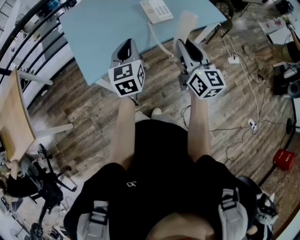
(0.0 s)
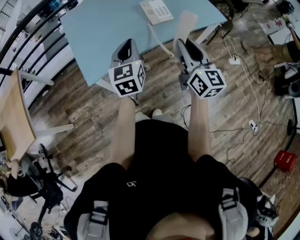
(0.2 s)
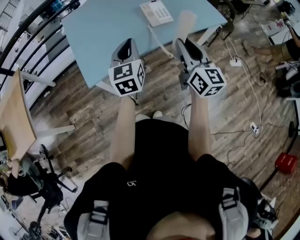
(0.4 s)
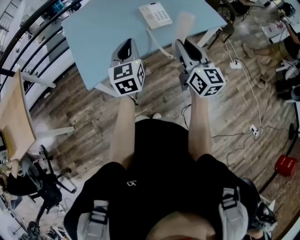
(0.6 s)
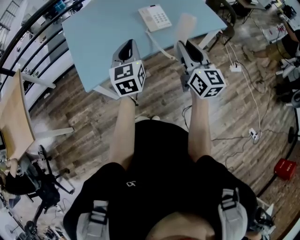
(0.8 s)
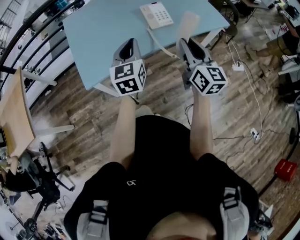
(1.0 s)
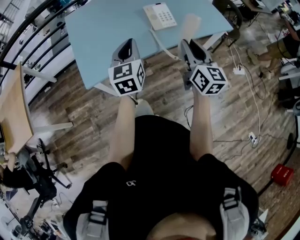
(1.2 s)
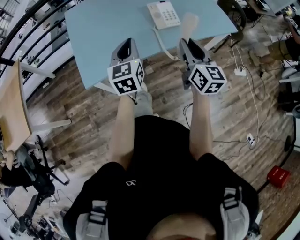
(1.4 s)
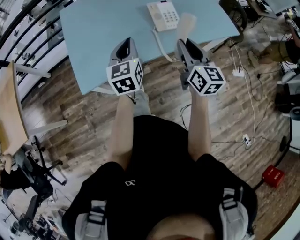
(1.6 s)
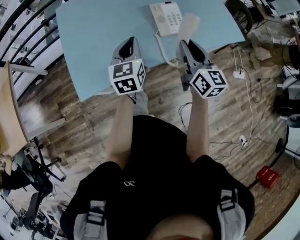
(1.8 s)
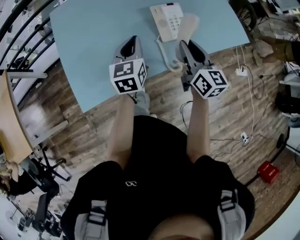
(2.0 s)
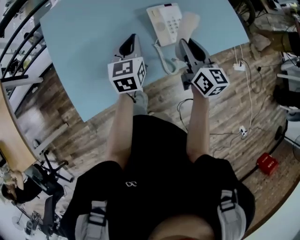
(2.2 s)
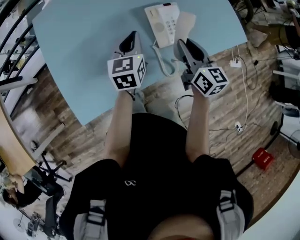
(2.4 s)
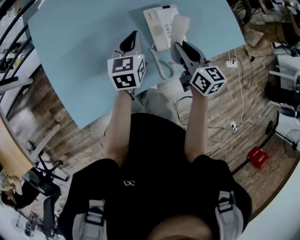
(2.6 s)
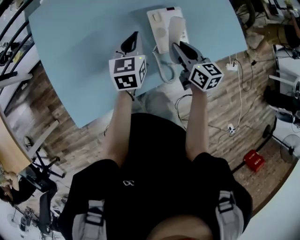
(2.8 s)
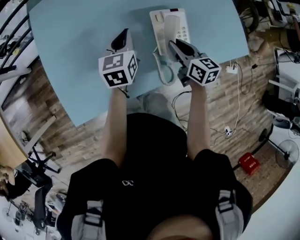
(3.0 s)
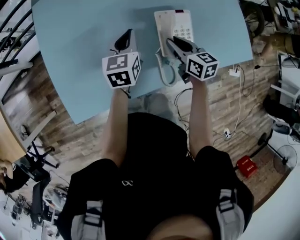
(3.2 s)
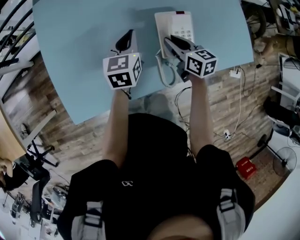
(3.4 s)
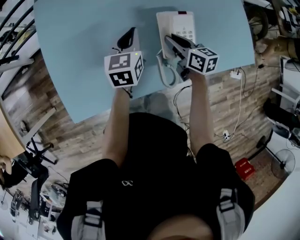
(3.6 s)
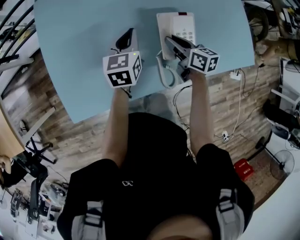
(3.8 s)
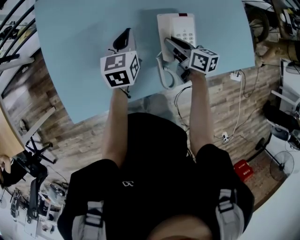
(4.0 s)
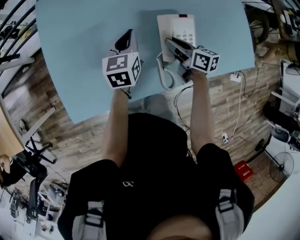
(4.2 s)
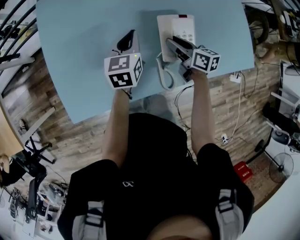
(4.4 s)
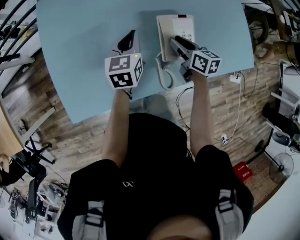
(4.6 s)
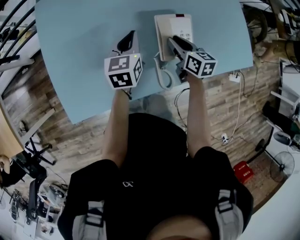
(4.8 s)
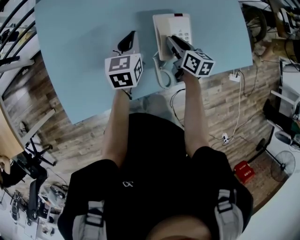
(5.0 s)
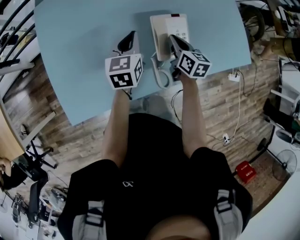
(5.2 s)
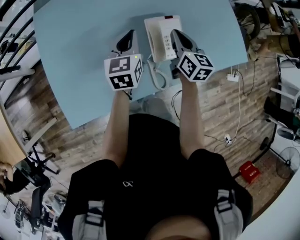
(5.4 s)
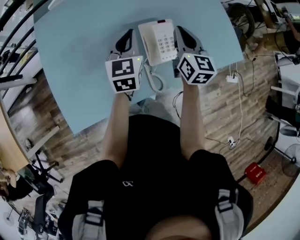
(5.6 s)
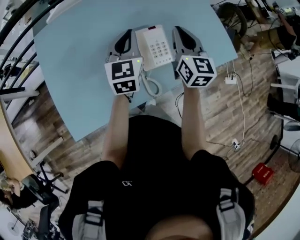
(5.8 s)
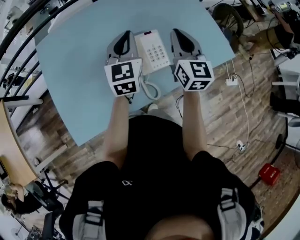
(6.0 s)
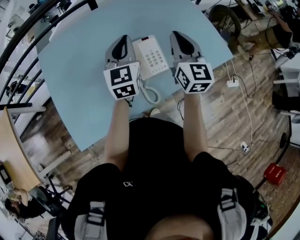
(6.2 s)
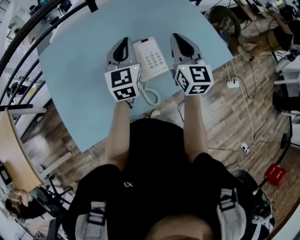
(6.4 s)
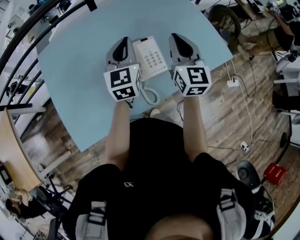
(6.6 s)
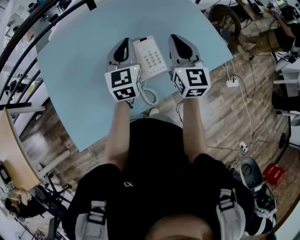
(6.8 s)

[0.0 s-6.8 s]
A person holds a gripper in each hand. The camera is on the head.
0.0 to 1.4 s: The two grippers go about 10 cm forward.
1.4 to 2.8 s: The right gripper moves forward and downward, roughly 35 cm, and changes its angle by some 30 degrees. The left gripper goes some 30 cm forward.
2.8 to 4.0 s: The left gripper moves approximately 5 cm. The right gripper heads downward and forward, covering roughly 10 cm, and changes its angle by some 20 degrees.
4.0 to 5.4 s: The left gripper heads upward, covering roughly 5 cm, while the right gripper goes roughly 10 cm upward and to the right, and turns by approximately 30 degrees.
5.4 to 6.8 s: The right gripper goes approximately 15 cm upward, and changes its angle by some 30 degrees. The left gripper travels upward and to the right by approximately 15 cm.

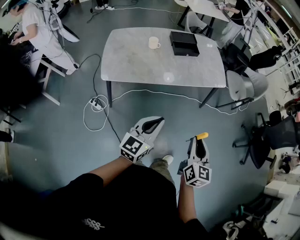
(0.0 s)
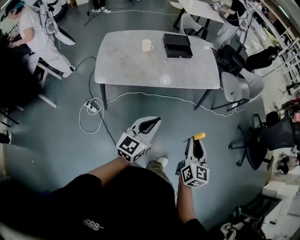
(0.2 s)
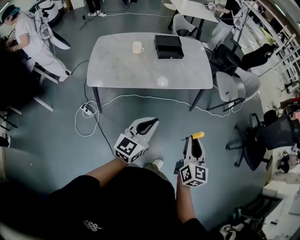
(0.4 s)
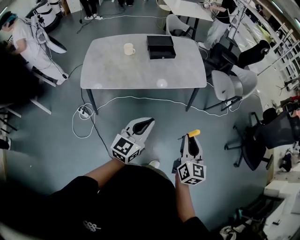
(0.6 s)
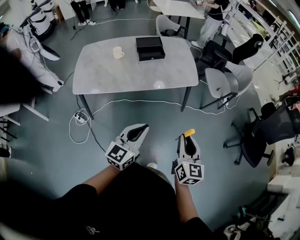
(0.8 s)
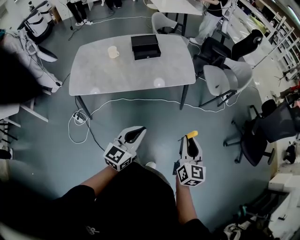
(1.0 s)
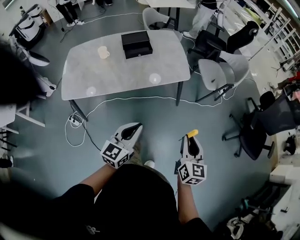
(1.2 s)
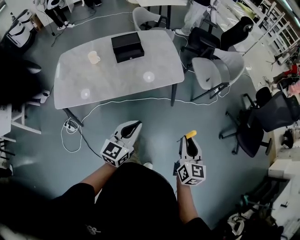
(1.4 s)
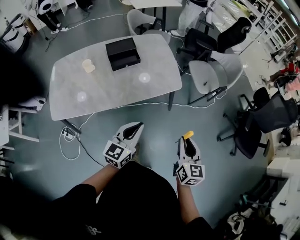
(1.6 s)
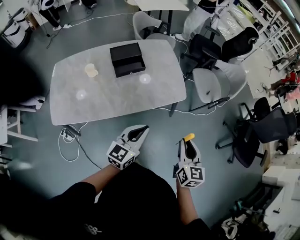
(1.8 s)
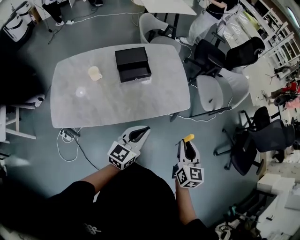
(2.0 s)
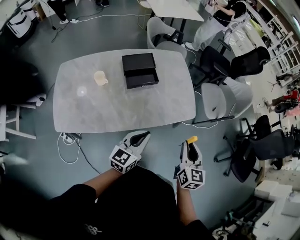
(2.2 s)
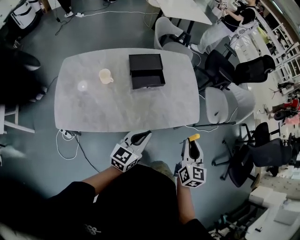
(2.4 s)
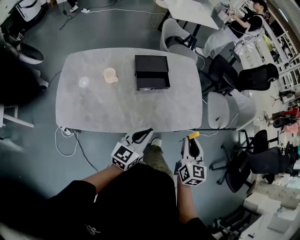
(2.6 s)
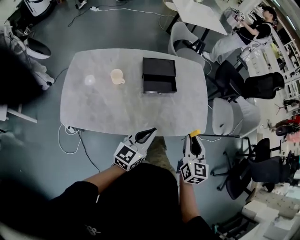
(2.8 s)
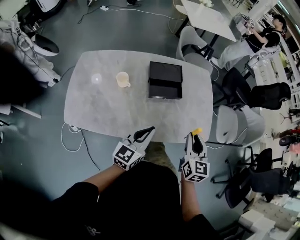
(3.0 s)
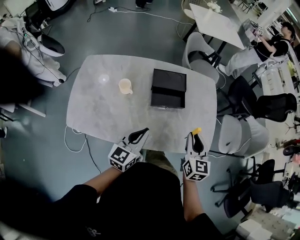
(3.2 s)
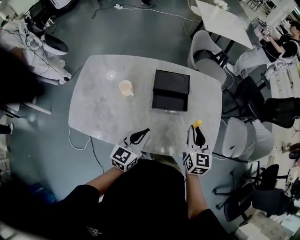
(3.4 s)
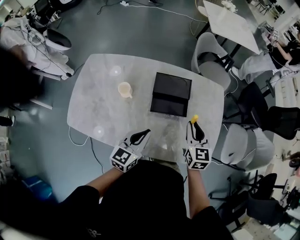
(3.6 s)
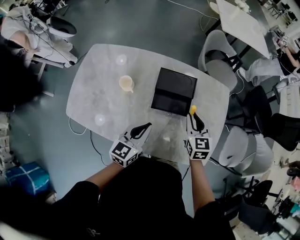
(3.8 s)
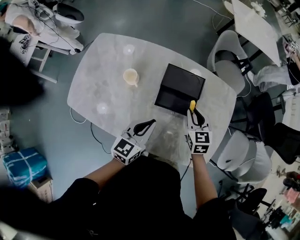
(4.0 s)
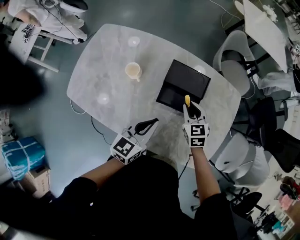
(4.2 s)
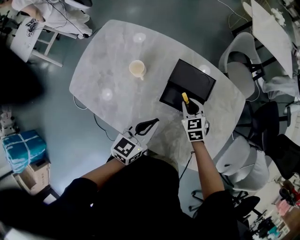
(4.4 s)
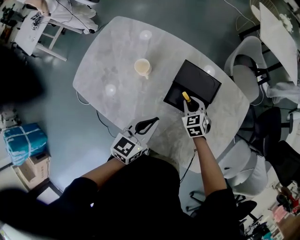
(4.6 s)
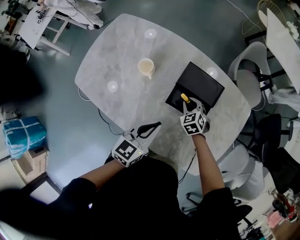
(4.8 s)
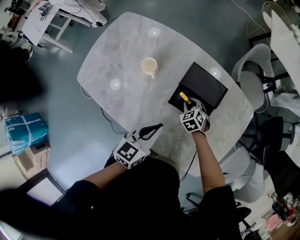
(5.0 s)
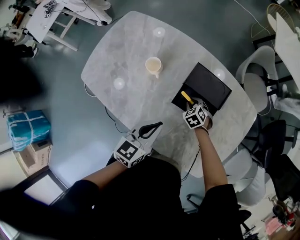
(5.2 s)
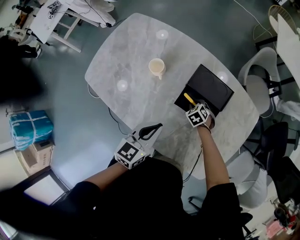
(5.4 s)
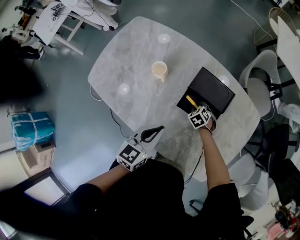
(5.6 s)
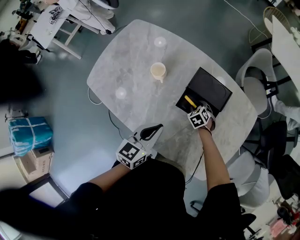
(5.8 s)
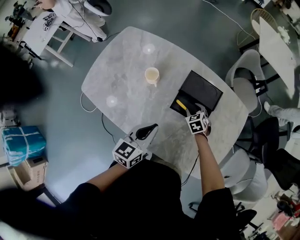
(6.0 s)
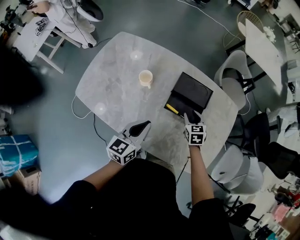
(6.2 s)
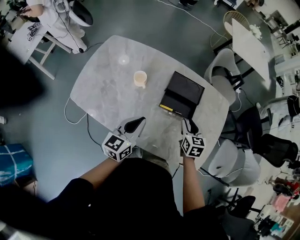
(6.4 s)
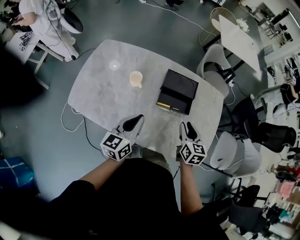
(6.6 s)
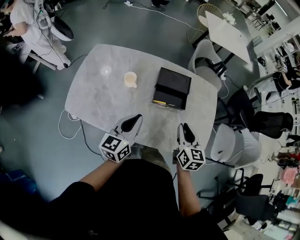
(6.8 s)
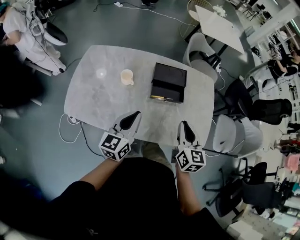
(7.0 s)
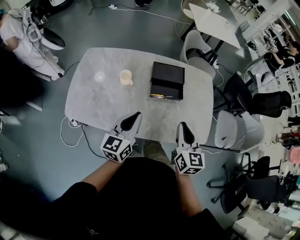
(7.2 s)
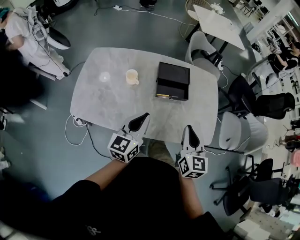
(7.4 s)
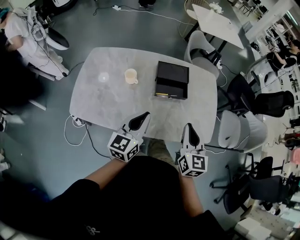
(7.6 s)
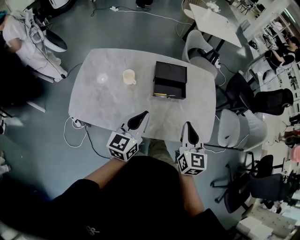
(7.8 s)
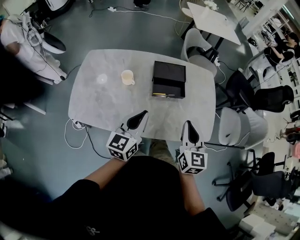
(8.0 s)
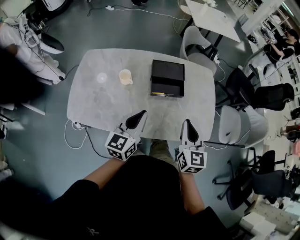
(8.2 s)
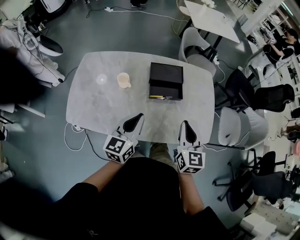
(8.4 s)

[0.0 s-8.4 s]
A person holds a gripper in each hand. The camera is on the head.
0.0 to 1.4 s: Both grippers travel together to the right and forward, approximately 30 cm.
1.4 to 2.8 s: Both grippers travel together forward and to the left, roughly 40 cm.
2.8 to 4.2 s: The right gripper shifts by some 40 cm, and turns by roughly 50 degrees, while the left gripper moves approximately 20 cm, and rotates some 30 degrees.
4.2 to 5.6 s: The left gripper changes place by about 5 cm, while the right gripper moves downward, about 20 cm, and turns by approximately 40 degrees.
5.6 to 7.0 s: The left gripper shifts by about 15 cm, and changes its angle by roughly 20 degrees. Meanwhile the right gripper is displaced upward by some 40 cm, and angles its fingers upward, by roughly 50 degrees.
7.0 to 8.4 s: The grippers stay close to where they were, moving slightly.

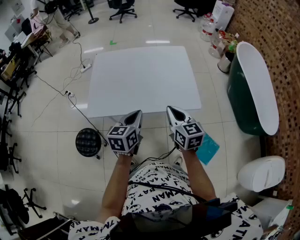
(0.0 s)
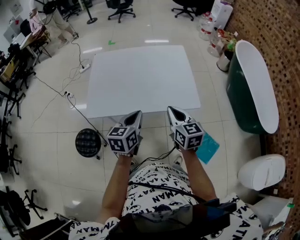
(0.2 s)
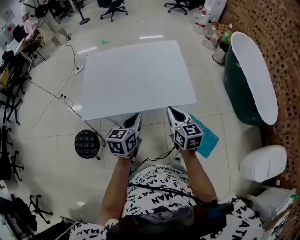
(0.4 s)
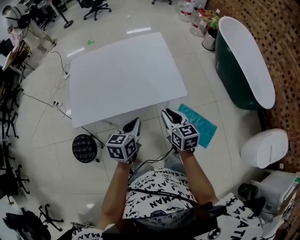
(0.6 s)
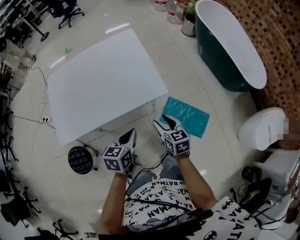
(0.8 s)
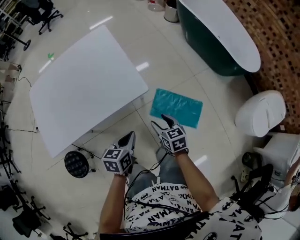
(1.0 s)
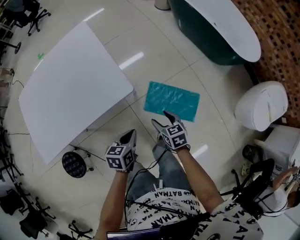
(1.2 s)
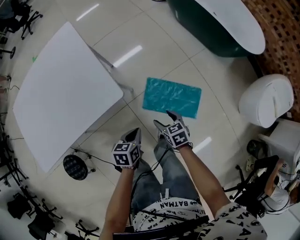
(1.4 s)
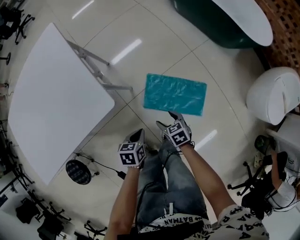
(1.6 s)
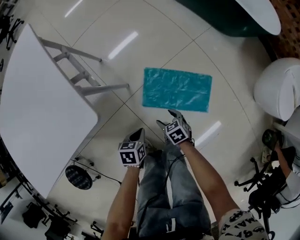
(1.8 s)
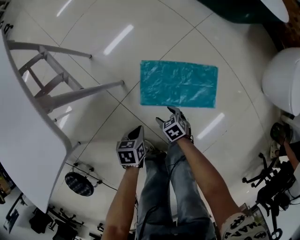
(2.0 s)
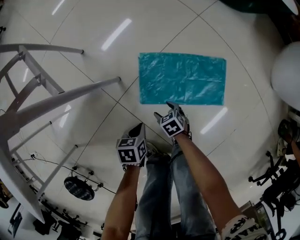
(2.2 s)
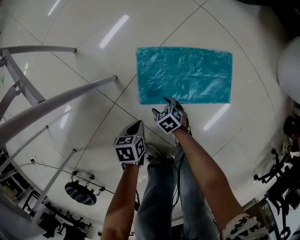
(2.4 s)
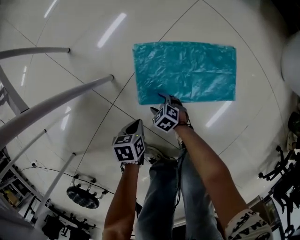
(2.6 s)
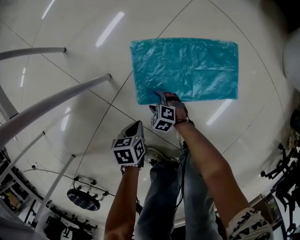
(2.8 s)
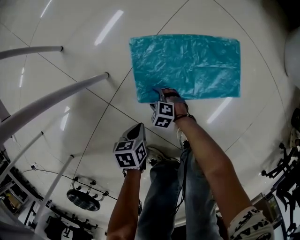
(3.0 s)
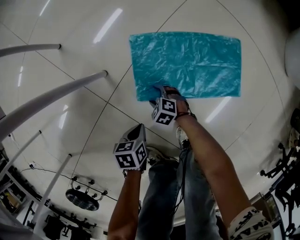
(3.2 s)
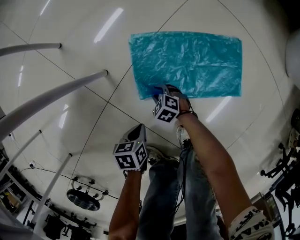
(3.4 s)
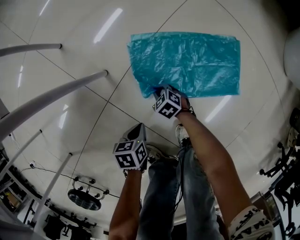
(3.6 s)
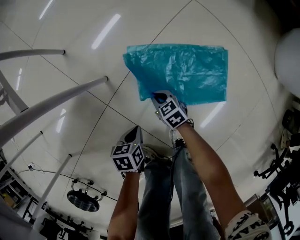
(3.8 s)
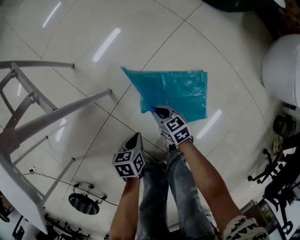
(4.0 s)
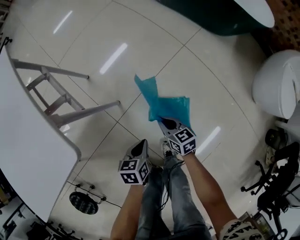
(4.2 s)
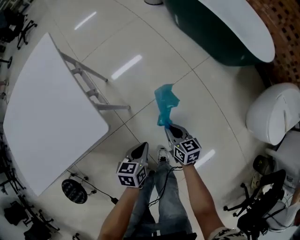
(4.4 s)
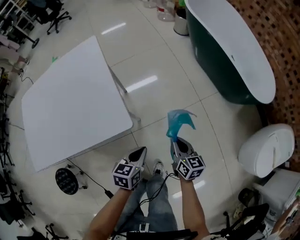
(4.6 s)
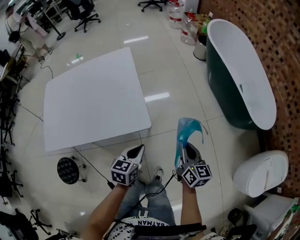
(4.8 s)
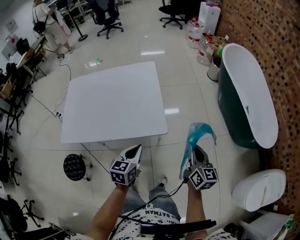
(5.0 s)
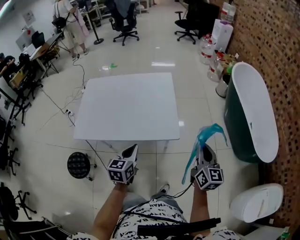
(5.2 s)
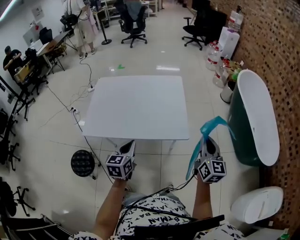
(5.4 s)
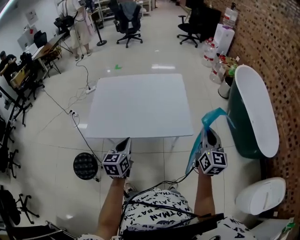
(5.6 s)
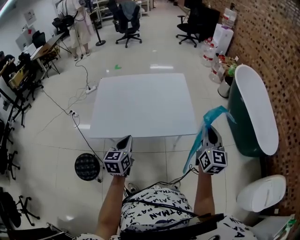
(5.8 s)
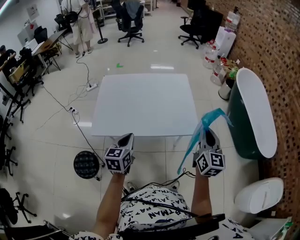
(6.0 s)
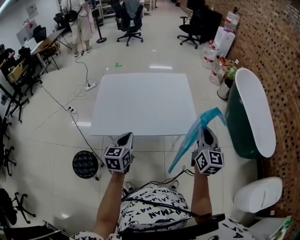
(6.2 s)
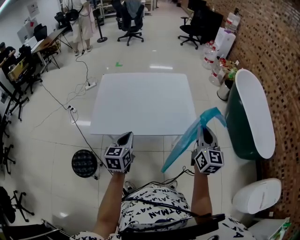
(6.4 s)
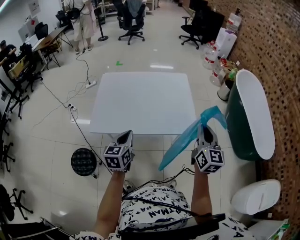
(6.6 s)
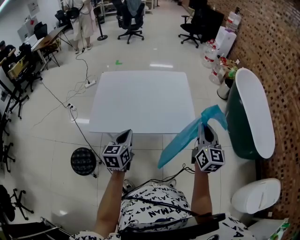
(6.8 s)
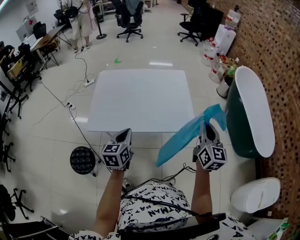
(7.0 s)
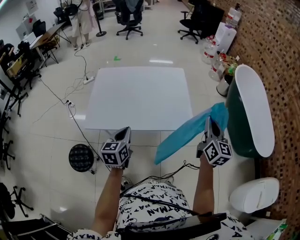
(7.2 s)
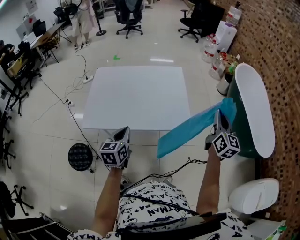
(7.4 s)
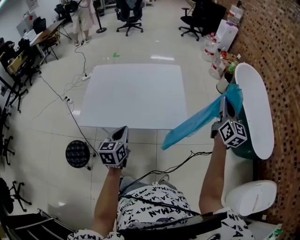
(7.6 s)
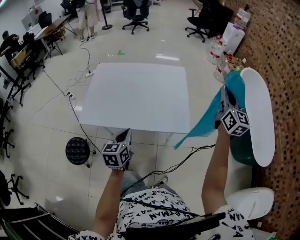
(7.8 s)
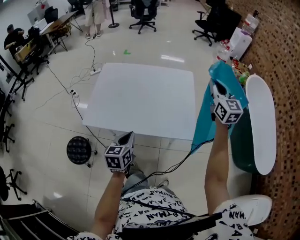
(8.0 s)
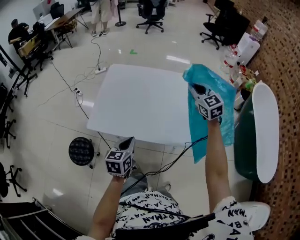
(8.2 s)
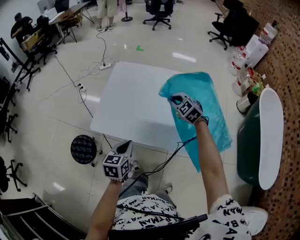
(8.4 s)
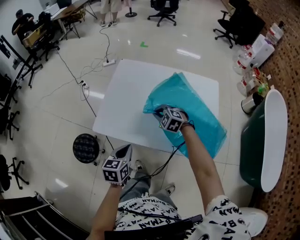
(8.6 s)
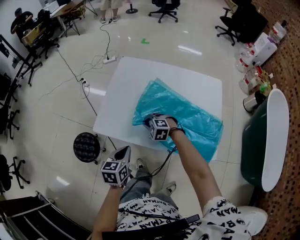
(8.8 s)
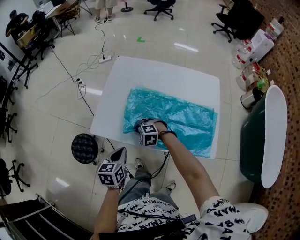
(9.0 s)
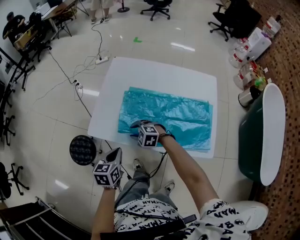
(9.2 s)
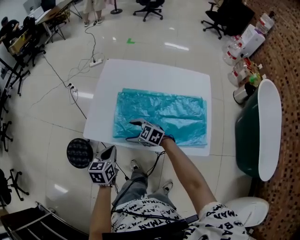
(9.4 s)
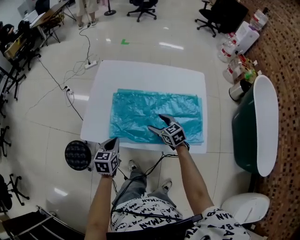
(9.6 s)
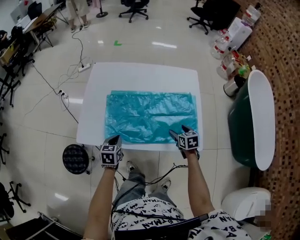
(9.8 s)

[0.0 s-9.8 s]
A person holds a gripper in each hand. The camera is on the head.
0.0 to 1.4 s: The right gripper goes roughly 50 cm downward and to the right, points its fingers roughly 30 degrees further downward, and opens its fingers, while the left gripper heads to the right and downward, covering approximately 50 cm, and turns by some 40 degrees.
1.4 to 2.8 s: Both grippers move downward, approximately 50 cm. The right gripper rotates some 30 degrees. Meanwhile the left gripper changes its angle by some 20 degrees.
2.8 to 4.2 s: The two grippers go about 35 cm upward. The right gripper changes its angle by approximately 50 degrees, and closes its fingers.
4.2 to 5.6 s: The two grippers go about 60 cm upward. The left gripper angles its fingers upward, by about 30 degrees. Meanwhile the right gripper tips its fingers upward by approximately 30 degrees.
7.0 to 8.4 s: The left gripper shifts approximately 5 cm downward. Meanwhile the right gripper moves about 40 cm, and points its fingers some 40 degrees further downward.
8.4 to 9.8 s: The left gripper travels downward by roughly 15 cm; the right gripper moves up and down over some 20 cm, changing direction 2 times, rolls clockwise, seen from behind, by about 50 degrees, and opens its fingers.
